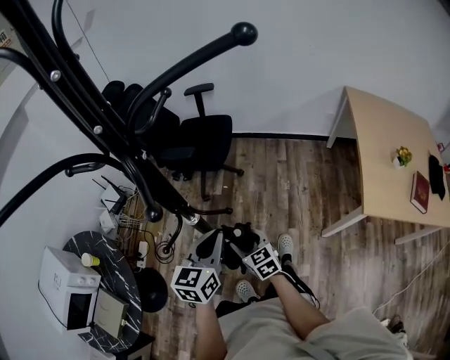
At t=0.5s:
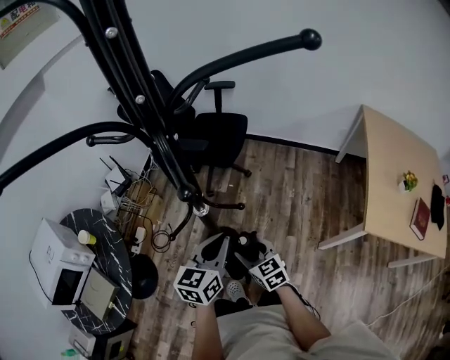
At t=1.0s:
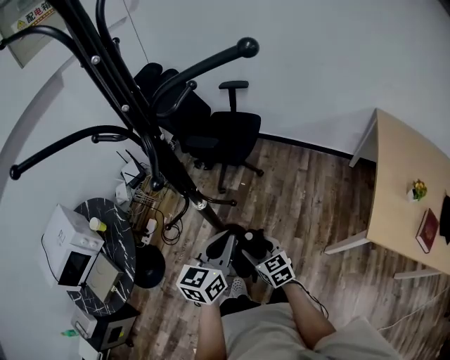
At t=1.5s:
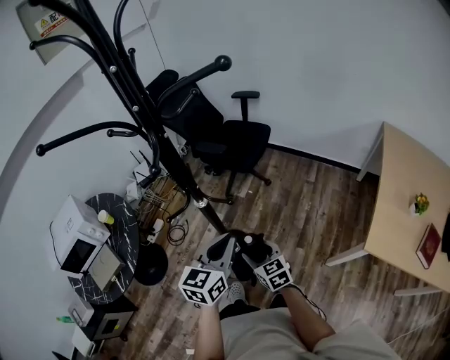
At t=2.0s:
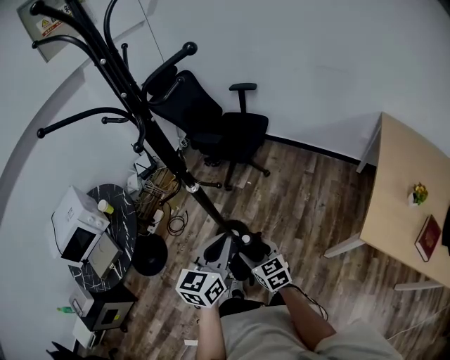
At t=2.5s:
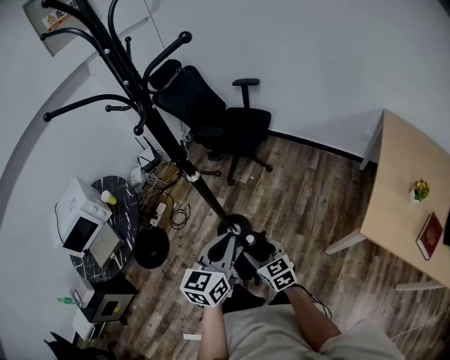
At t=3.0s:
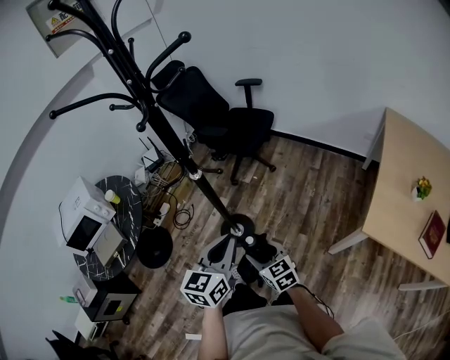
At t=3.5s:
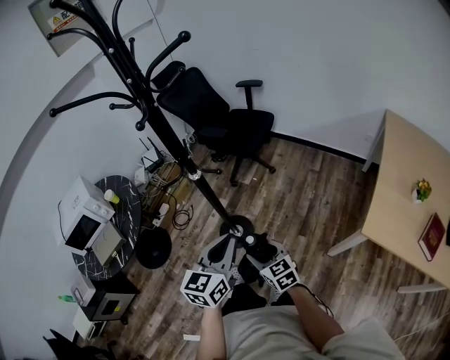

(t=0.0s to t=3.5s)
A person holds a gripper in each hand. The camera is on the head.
t=0.0s - t=2.0s: The grippers both shift backward and to the right by about 15 cm.
t=2.0s - t=3.5s: Both grippers move backward, roughly 5 cm.

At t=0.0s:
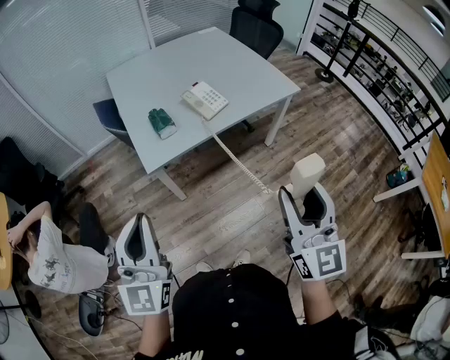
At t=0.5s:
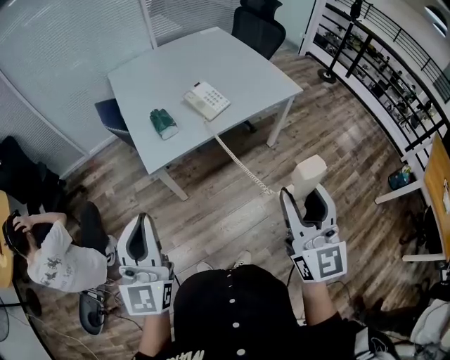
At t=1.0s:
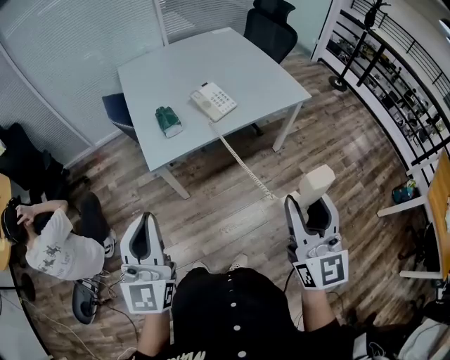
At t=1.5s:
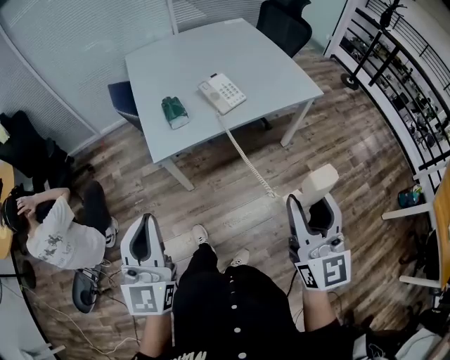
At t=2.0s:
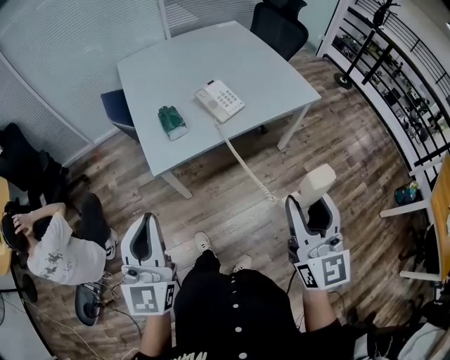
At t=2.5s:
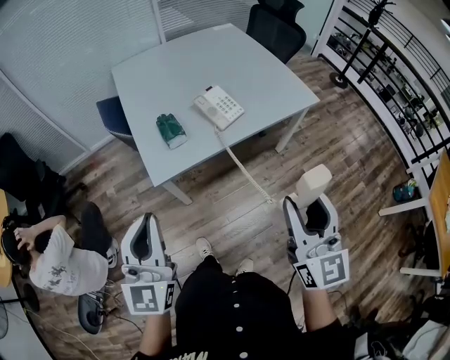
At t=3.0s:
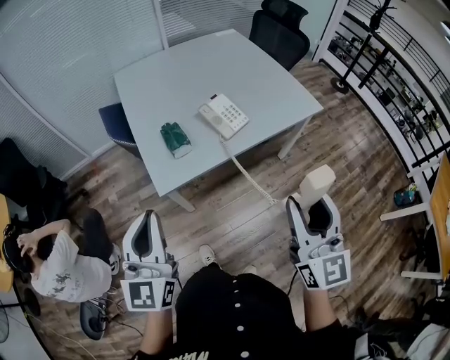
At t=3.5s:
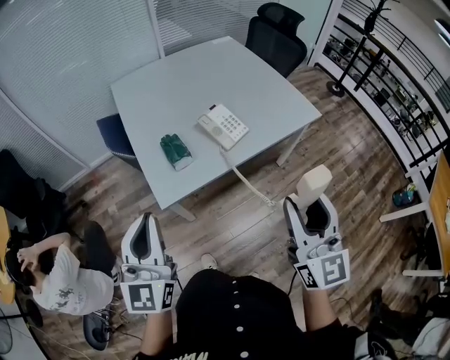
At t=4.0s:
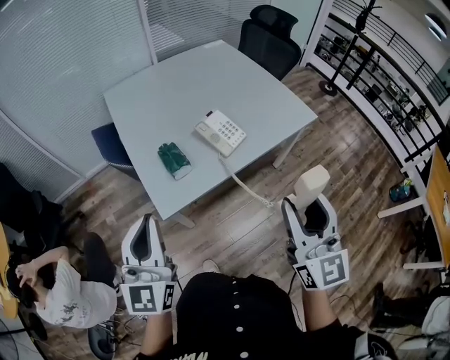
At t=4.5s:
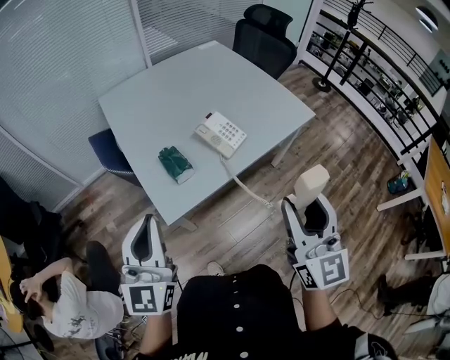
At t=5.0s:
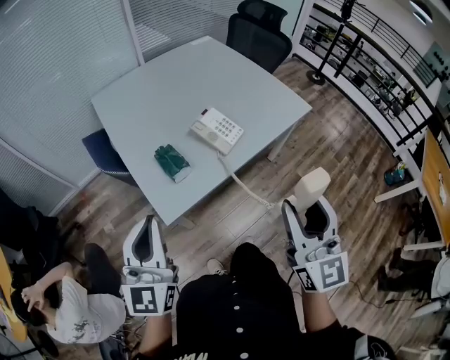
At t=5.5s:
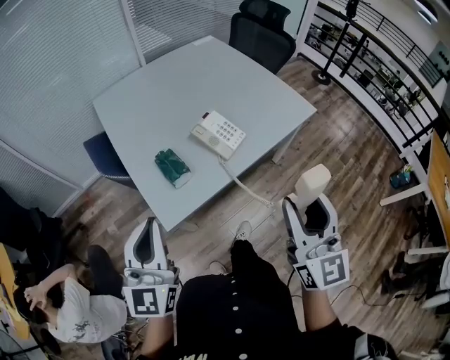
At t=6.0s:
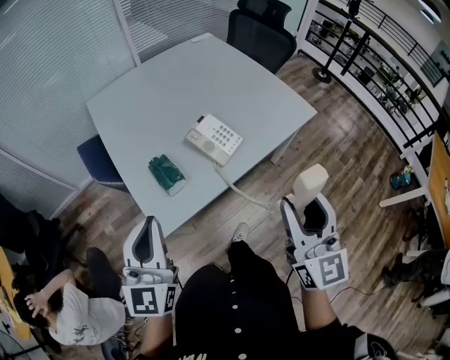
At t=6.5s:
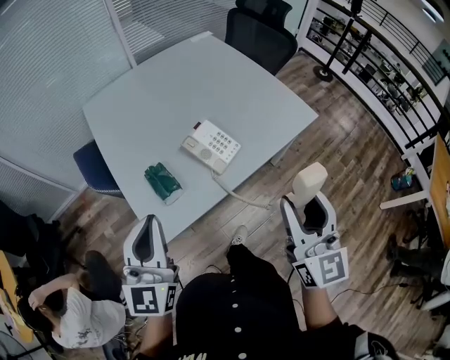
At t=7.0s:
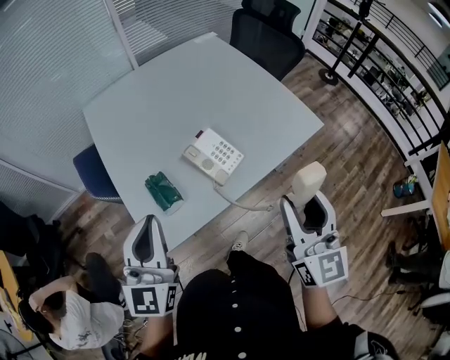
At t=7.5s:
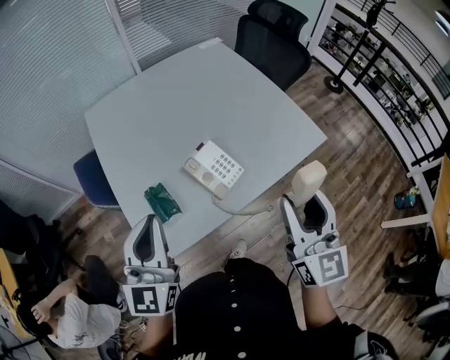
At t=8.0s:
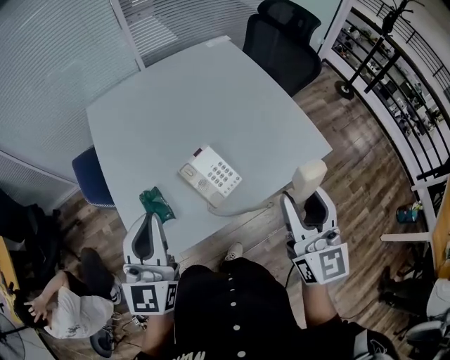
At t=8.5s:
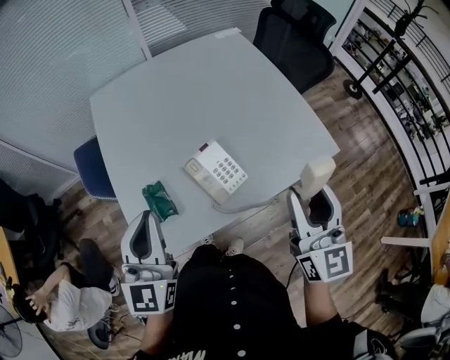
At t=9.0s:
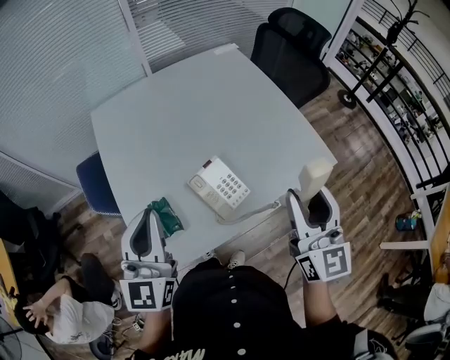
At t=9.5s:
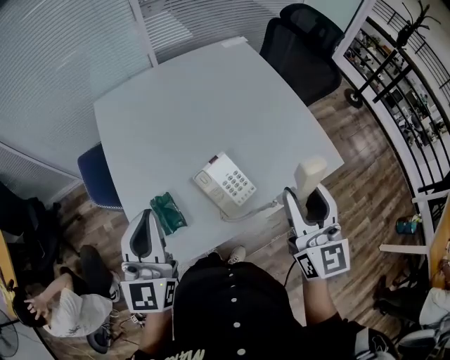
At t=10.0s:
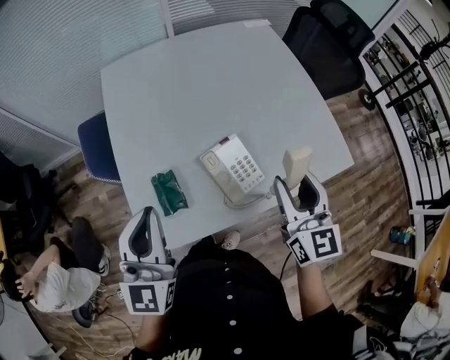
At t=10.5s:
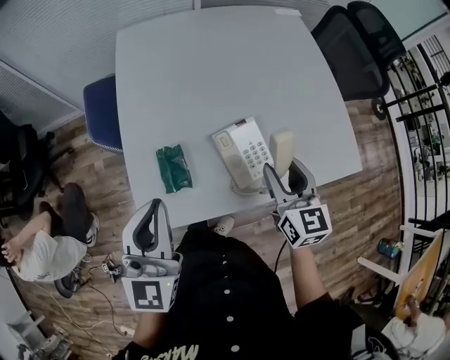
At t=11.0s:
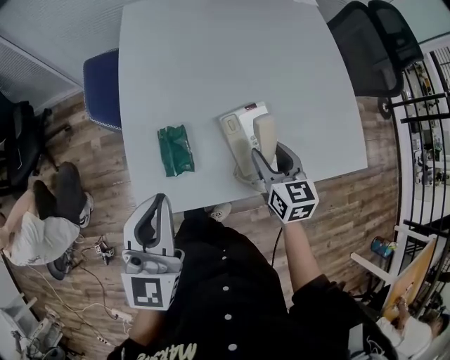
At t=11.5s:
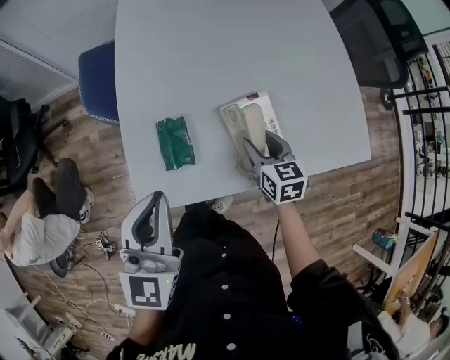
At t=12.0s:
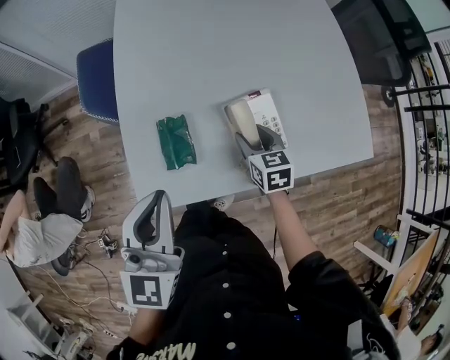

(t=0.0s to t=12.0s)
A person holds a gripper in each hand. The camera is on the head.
t=0.0s - t=2.0s: Both grippers move forward, roughly 5 cm.
t=2.0s - t=4.0s: The grippers both shift forward and to the left by about 15 cm.
t=4.0s - t=6.0s: The two grippers go some 10 cm forward.
t=6.0s - t=8.0s: The left gripper goes some 20 cm forward and to the right. Meanwhile the right gripper moves forward, roughly 20 cm.
t=8.0s - t=10.0s: The left gripper shifts roughly 5 cm to the left; the right gripper is displaced forward, to the left and downward by some 15 cm.
t=10.0s - t=12.0s: The left gripper moves downward, approximately 10 cm. Meanwhile the right gripper is displaced downward and to the left by roughly 25 cm, and angles its fingers downward, by roughly 30 degrees.

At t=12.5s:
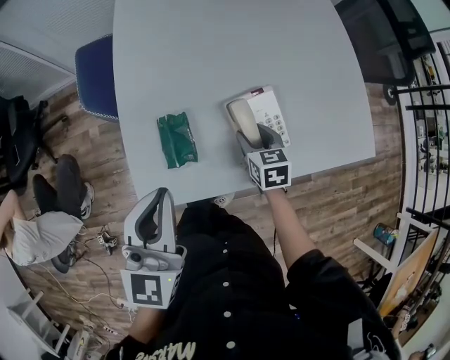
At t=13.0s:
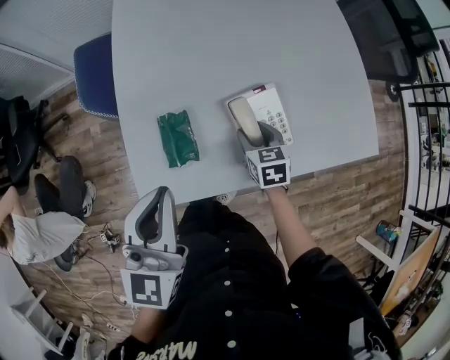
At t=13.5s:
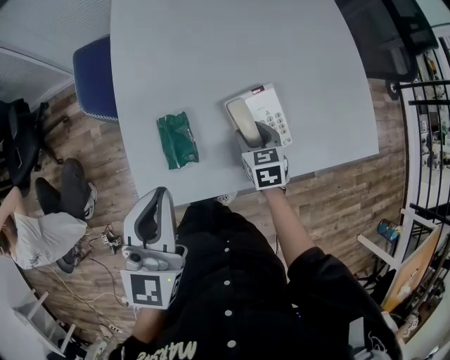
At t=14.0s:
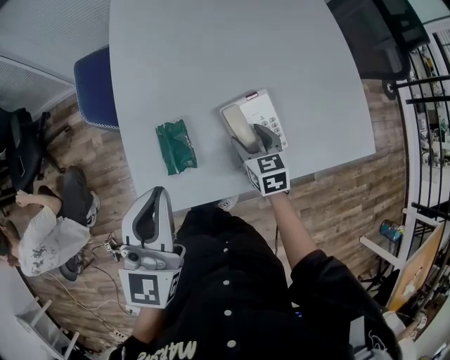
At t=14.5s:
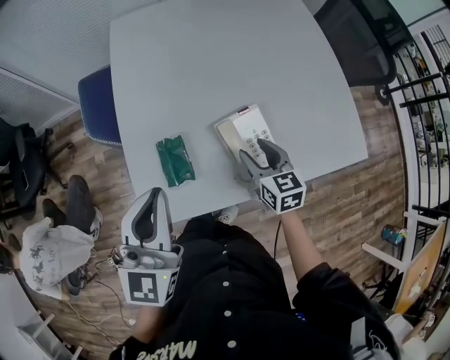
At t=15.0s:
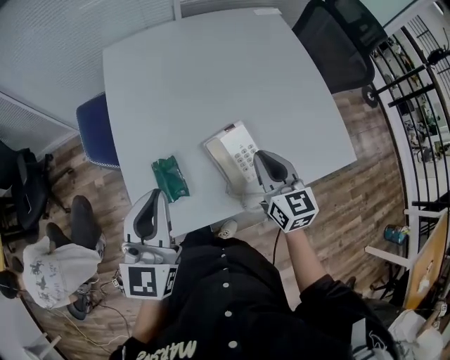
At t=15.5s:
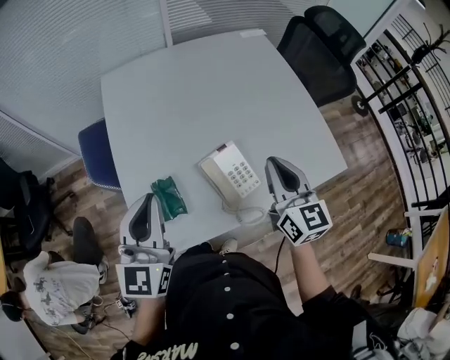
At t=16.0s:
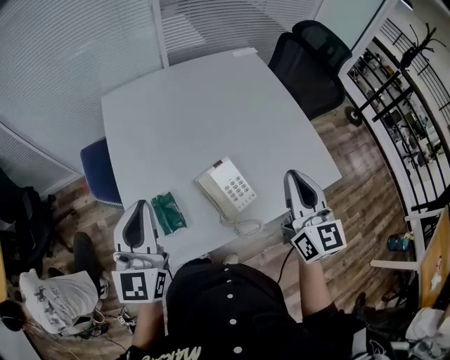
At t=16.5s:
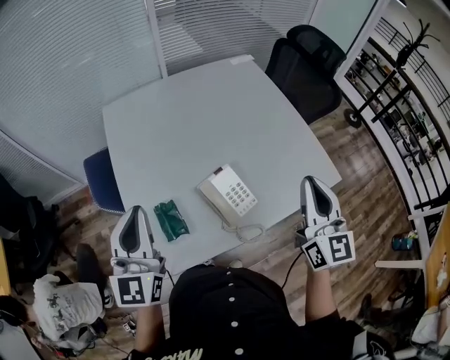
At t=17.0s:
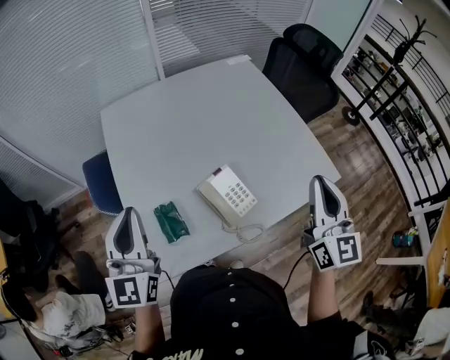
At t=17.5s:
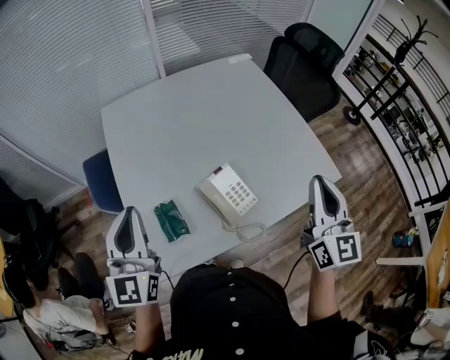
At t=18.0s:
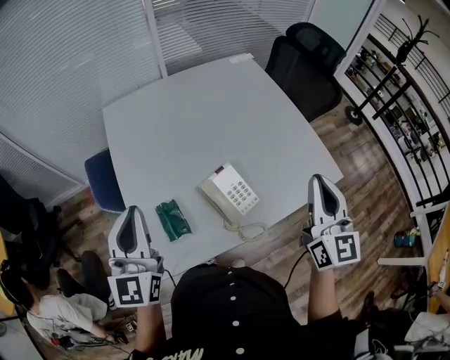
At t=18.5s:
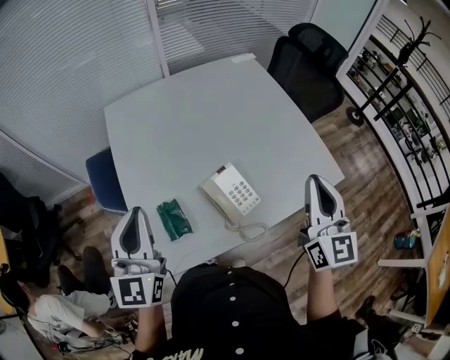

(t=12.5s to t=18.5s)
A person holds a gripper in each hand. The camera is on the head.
t=12.5s - t=14.5s: The right gripper is displaced upward by about 10 cm.
t=14.5s - t=16.5s: The right gripper heads upward and to the right, covering about 30 cm, tips its fingers upward by about 30 degrees, and closes its fingers. The left gripper goes about 5 cm upward.
t=16.5s - t=18.5s: There are only small adjustments of the grippers.

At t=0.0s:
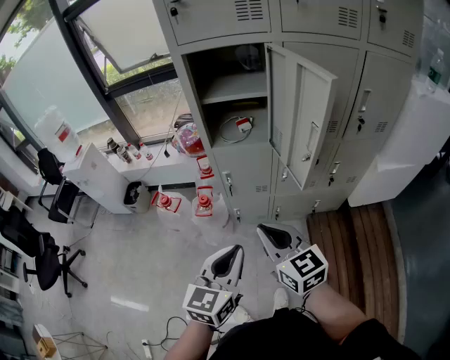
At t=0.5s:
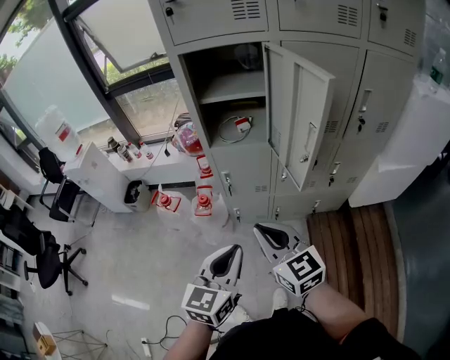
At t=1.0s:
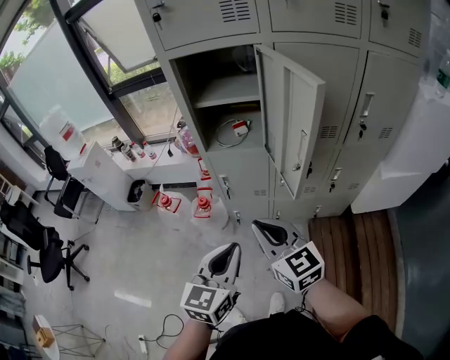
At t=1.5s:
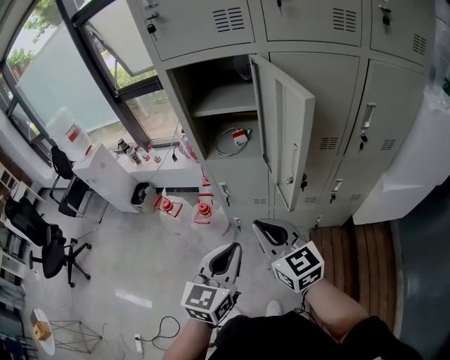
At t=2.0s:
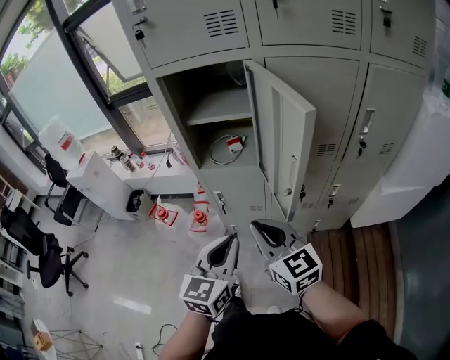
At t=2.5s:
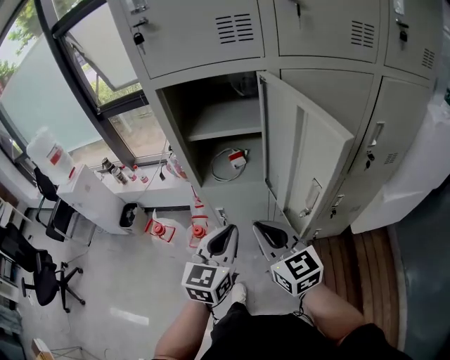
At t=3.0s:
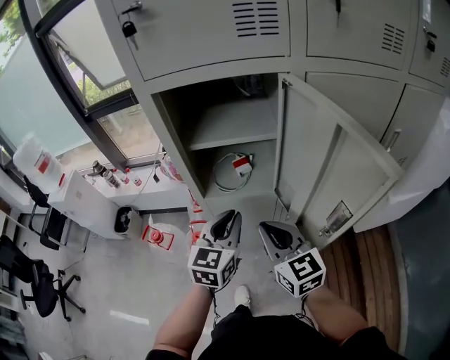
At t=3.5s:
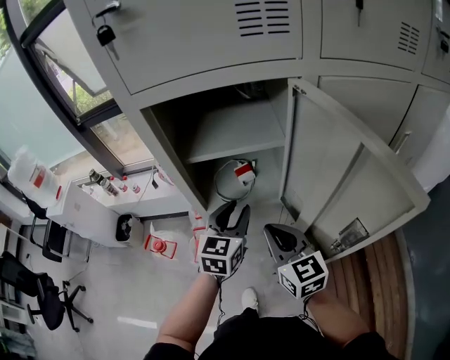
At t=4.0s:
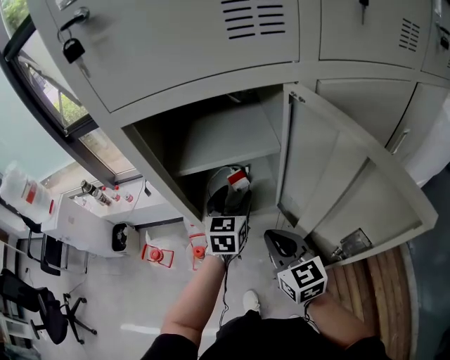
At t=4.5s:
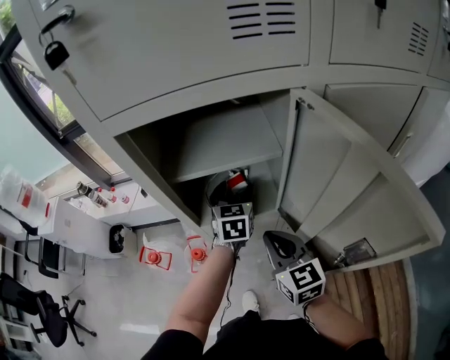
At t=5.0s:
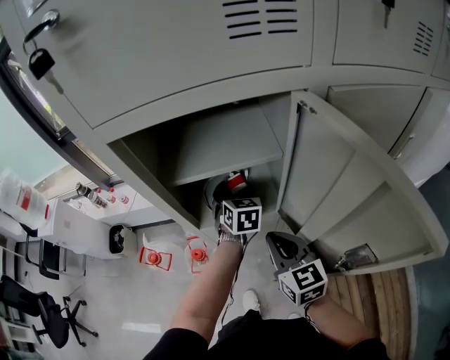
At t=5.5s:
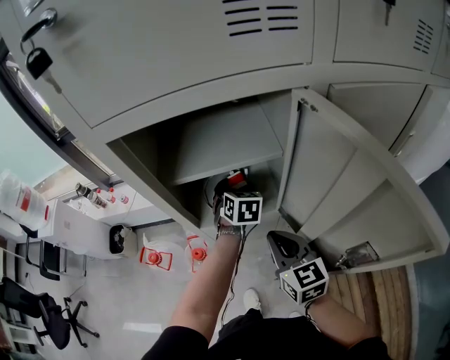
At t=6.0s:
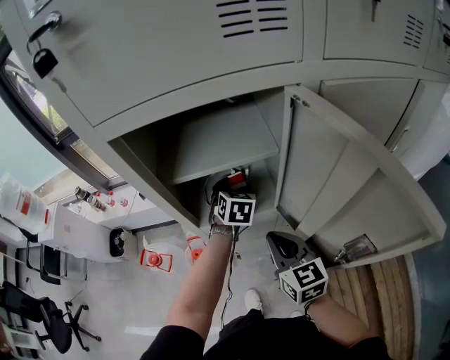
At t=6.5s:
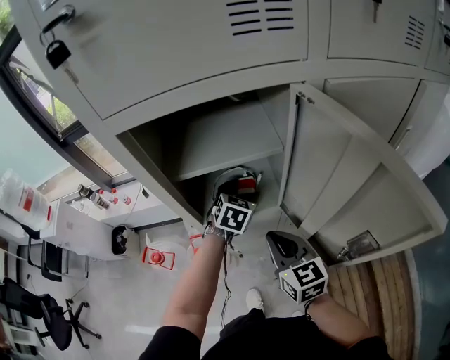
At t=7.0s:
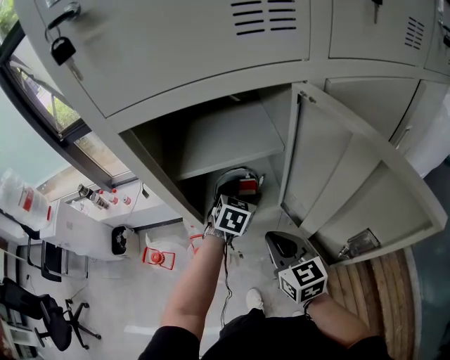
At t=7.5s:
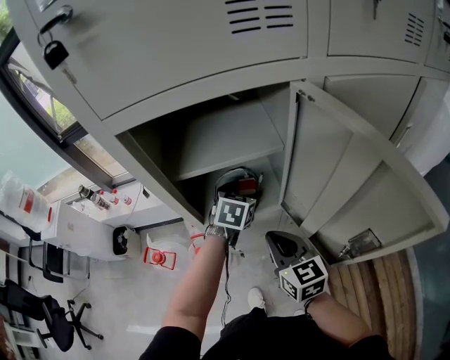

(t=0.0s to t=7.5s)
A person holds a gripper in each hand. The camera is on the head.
t=0.0s - t=2.0s: Both grippers travel together forward and to the right, about 15 cm.
t=2.0s - t=4.0s: The right gripper is displaced forward by approximately 20 cm, and turns by some 20 degrees; the left gripper is displaced forward by roughly 35 cm, and opens its fingers.
t=4.0s - t=5.5s: The left gripper goes roughly 10 cm downward and forward, and swivels some 30 degrees.
t=5.5s - t=7.5s: The left gripper changes place by roughly 5 cm, and changes its angle by roughly 20 degrees.
